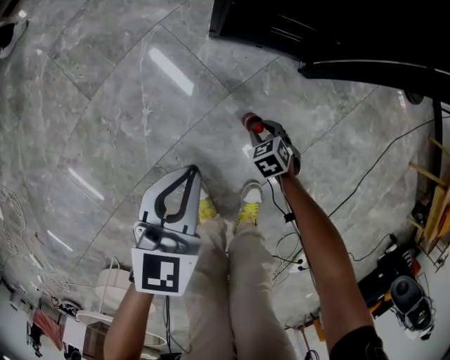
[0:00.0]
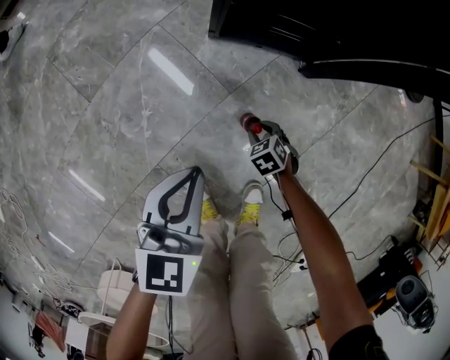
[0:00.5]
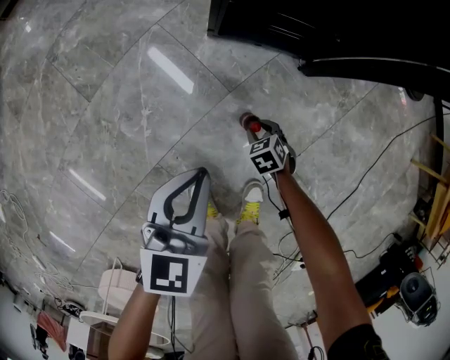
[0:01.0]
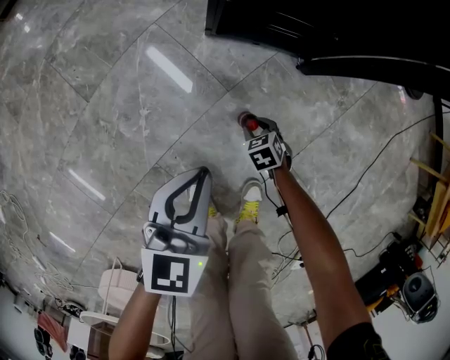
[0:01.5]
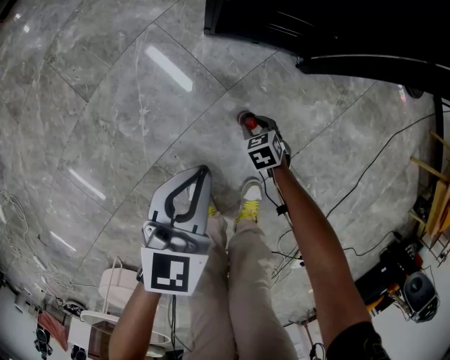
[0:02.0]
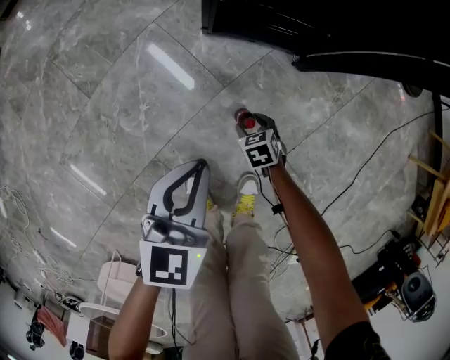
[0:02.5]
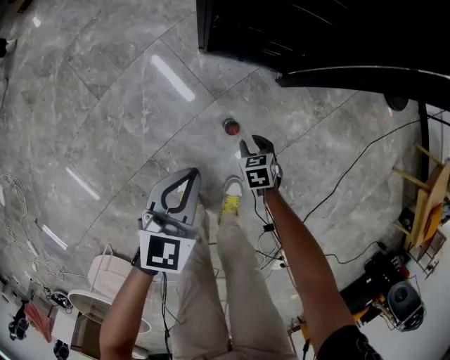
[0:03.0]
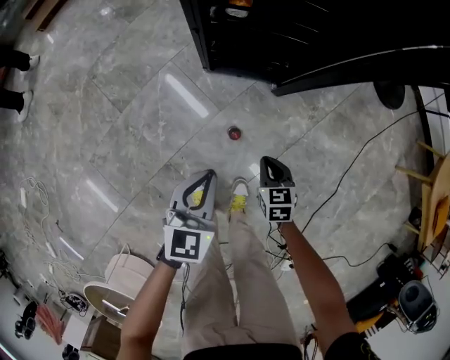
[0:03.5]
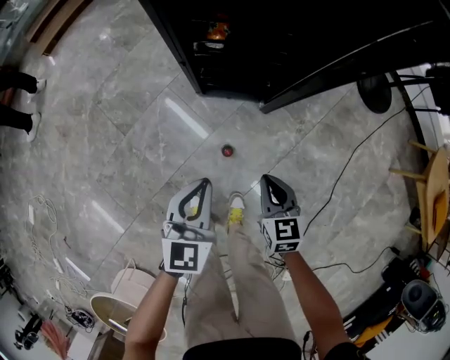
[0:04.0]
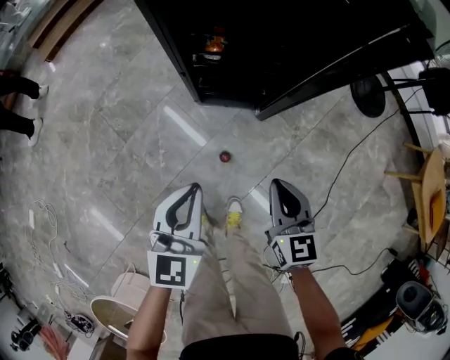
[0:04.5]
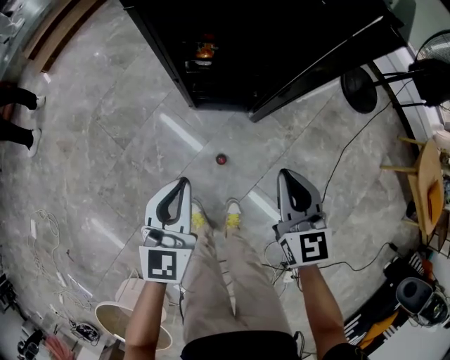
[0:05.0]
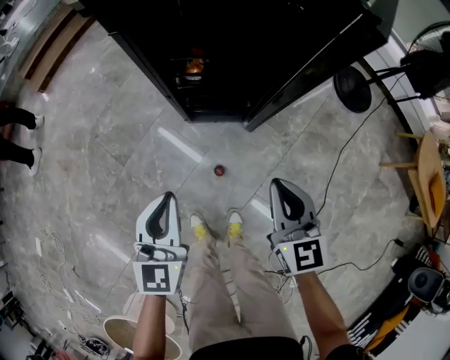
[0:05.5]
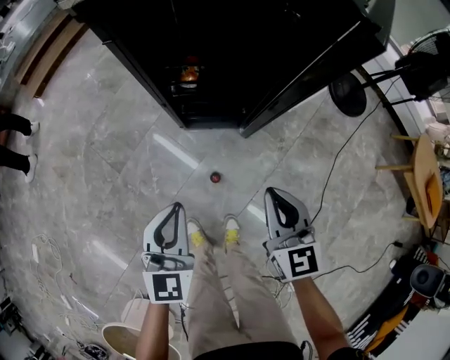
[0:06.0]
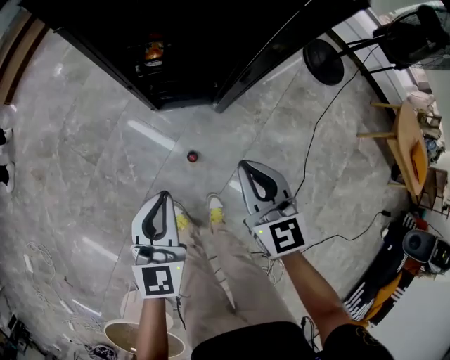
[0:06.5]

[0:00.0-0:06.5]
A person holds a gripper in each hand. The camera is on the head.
0:00.0 to 0:02.0: The grippers move only a little.
0:02.0 to 0:04.5: The right gripper heads upward, covering approximately 60 cm, and tips its fingers upward by approximately 40 degrees. Meanwhile the left gripper travels upward by about 35 cm.
0:04.5 to 0:06.5: The right gripper travels upward by roughly 5 cm.

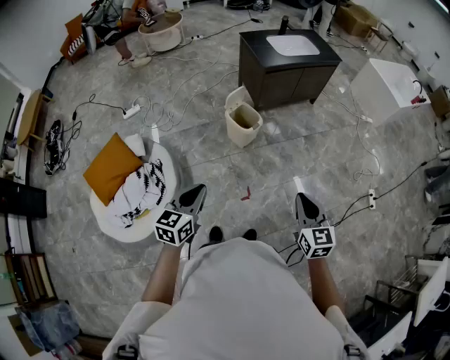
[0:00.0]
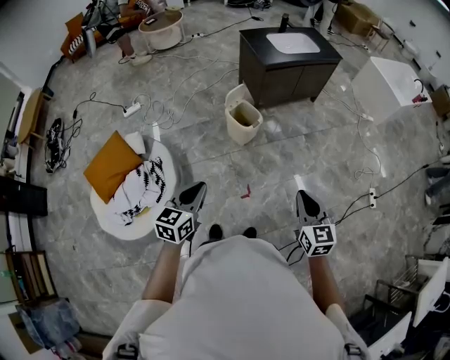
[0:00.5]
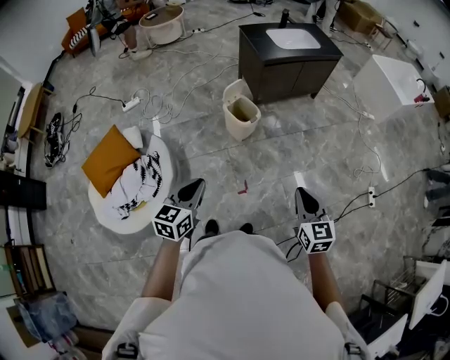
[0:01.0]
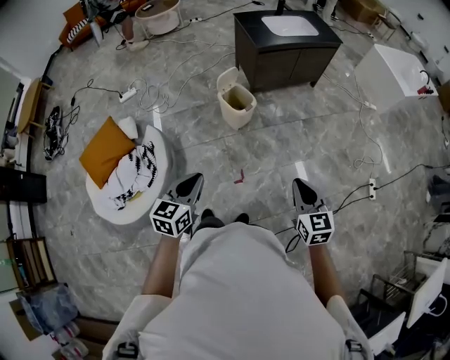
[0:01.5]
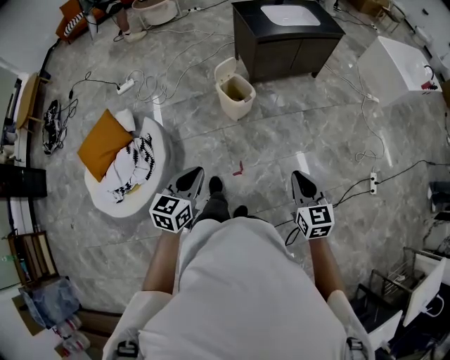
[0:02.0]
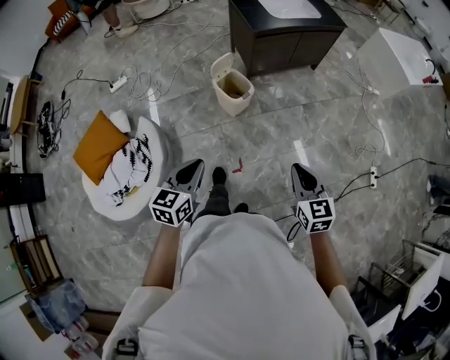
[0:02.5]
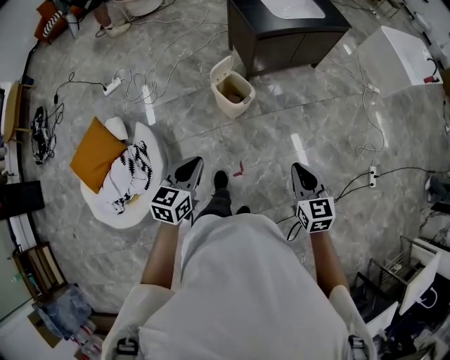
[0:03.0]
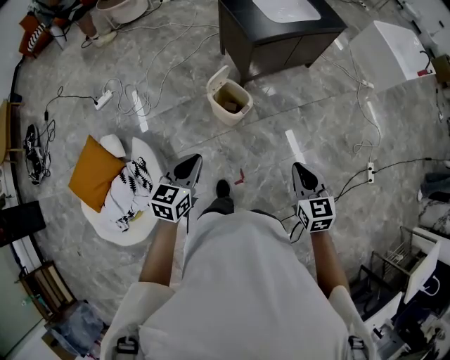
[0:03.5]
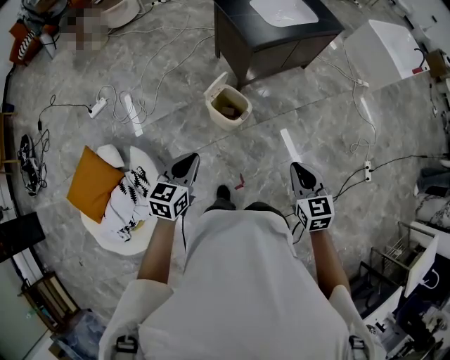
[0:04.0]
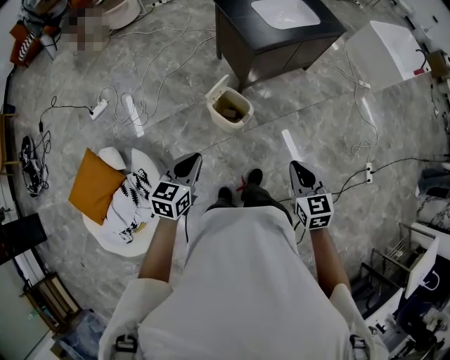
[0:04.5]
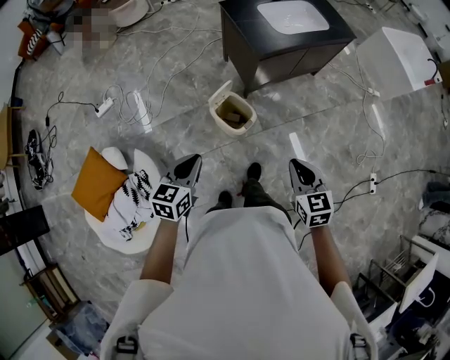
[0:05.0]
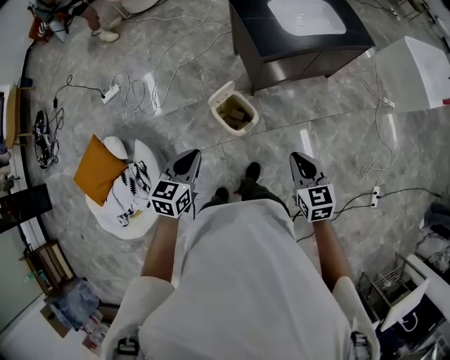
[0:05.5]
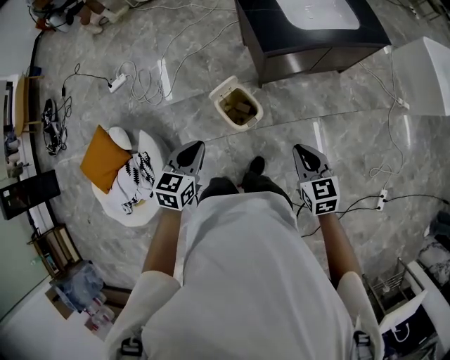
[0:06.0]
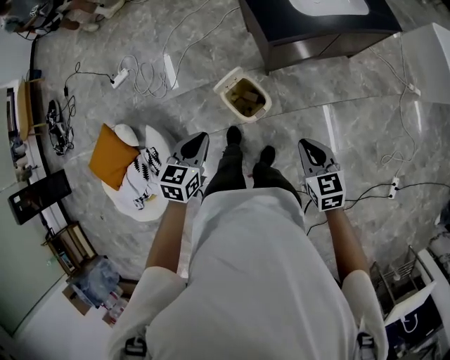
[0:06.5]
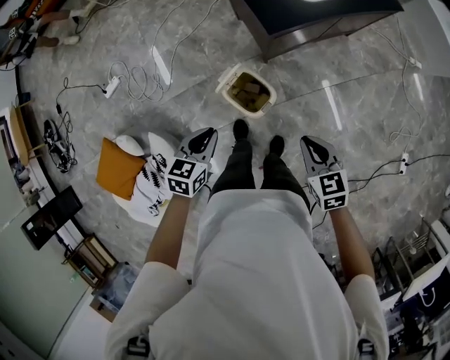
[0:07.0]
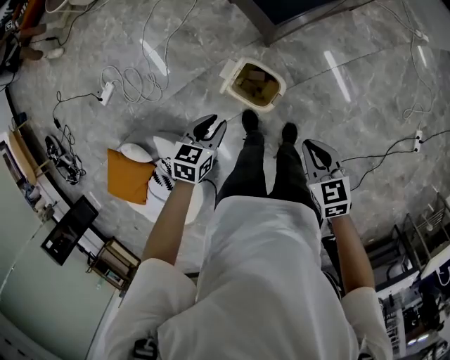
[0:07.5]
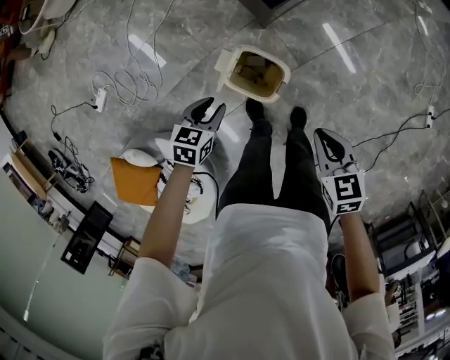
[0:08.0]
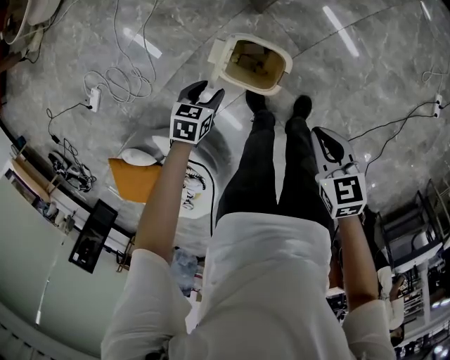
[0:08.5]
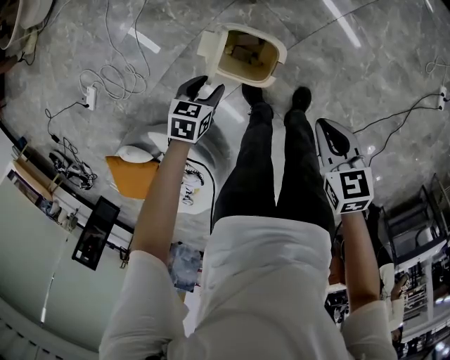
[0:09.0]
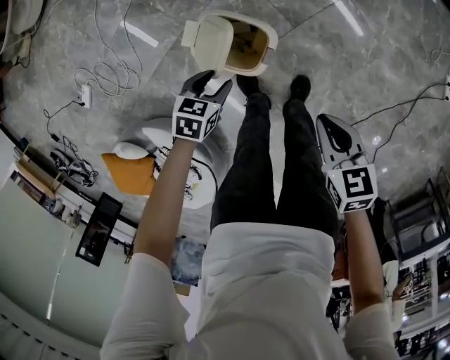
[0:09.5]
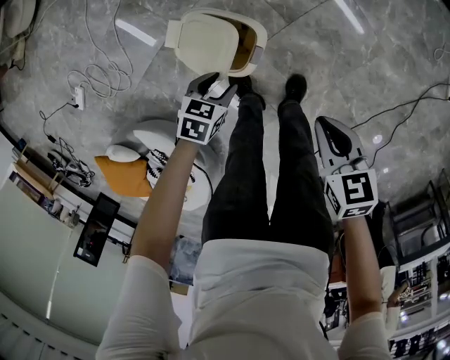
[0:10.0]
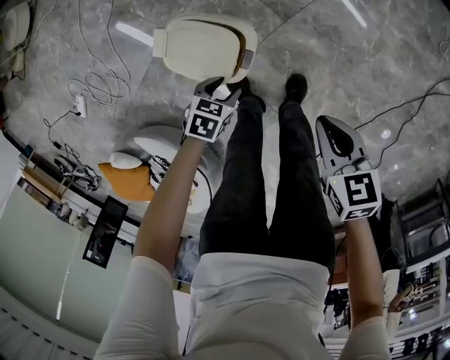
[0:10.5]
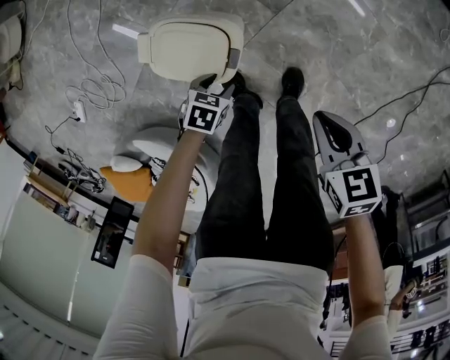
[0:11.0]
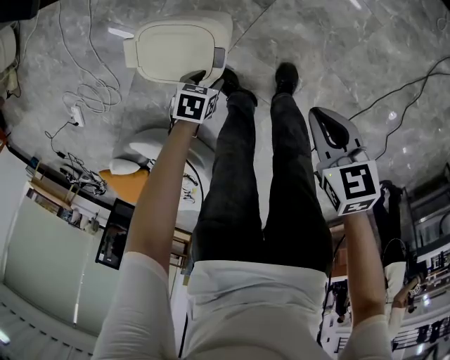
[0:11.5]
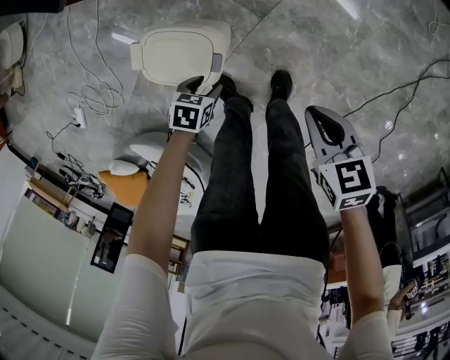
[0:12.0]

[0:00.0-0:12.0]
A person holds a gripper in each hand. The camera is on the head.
0:00.0 to 0:02.0: Both grippers travel together to the right, some 10 cm.
0:02.0 to 0:04.0: The grippers both shift forward and to the left by about 30 cm.
0:04.0 to 0:06.0: The left gripper travels forward and to the right by approximately 20 cm, while the right gripper moves forward, approximately 20 cm.
0:06.0 to 0:08.0: The left gripper moves downward, some 25 cm, turns by about 40 degrees, and opens its fingers. Meanwhile the right gripper moves downward, some 15 cm, and turns by about 30 degrees.
0:08.0 to 0:10.0: The right gripper heads downward, to the right and backward, covering some 15 cm. The left gripper shifts roughly 25 cm downward and to the right.
0:10.0 to 0:12.0: The left gripper goes roughly 10 cm downward. The right gripper changes place by roughly 10 cm.

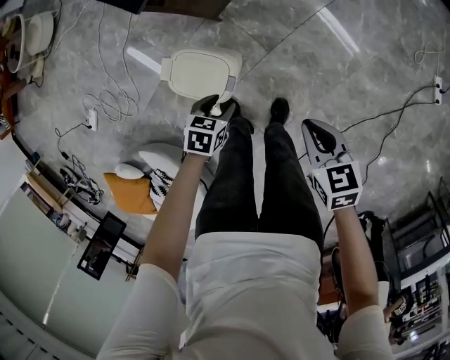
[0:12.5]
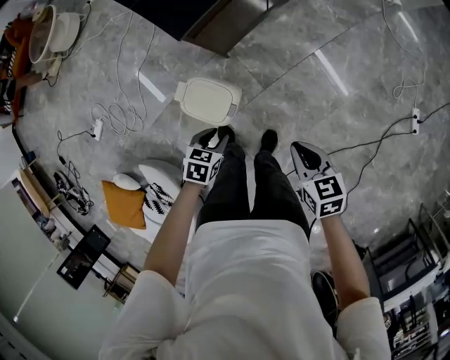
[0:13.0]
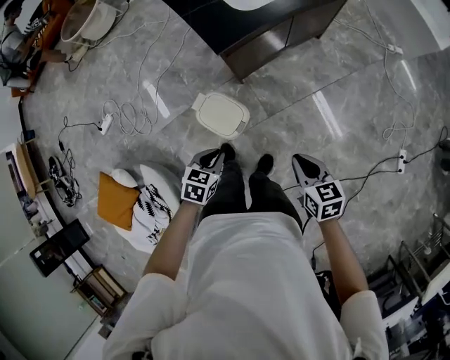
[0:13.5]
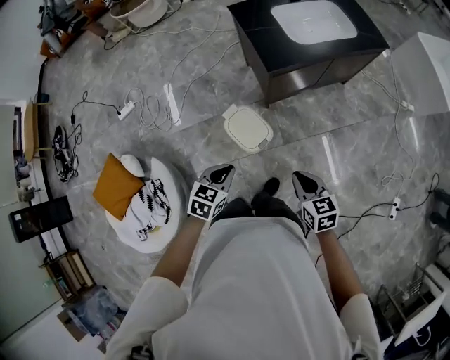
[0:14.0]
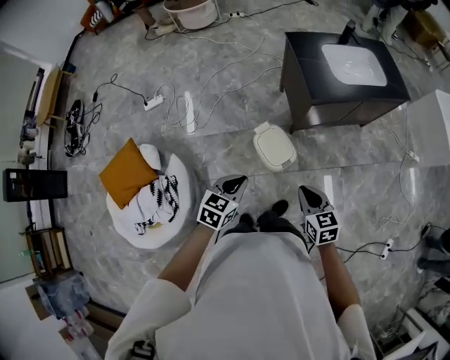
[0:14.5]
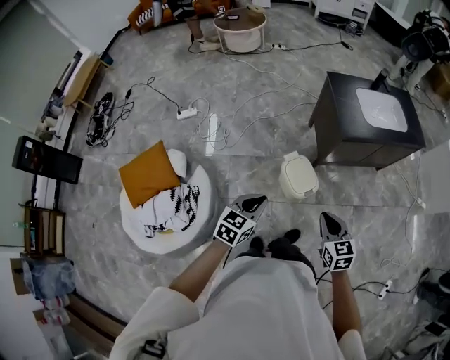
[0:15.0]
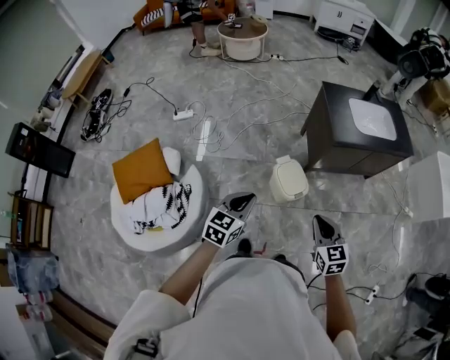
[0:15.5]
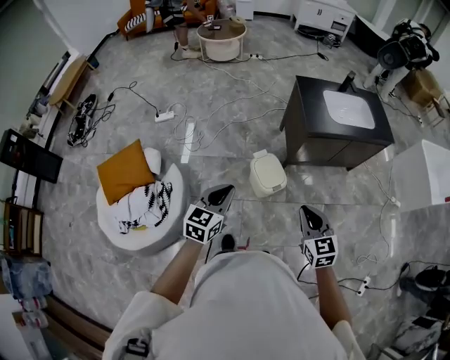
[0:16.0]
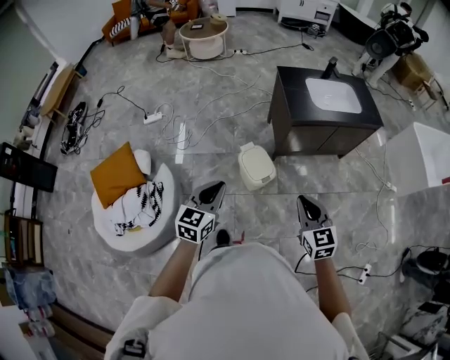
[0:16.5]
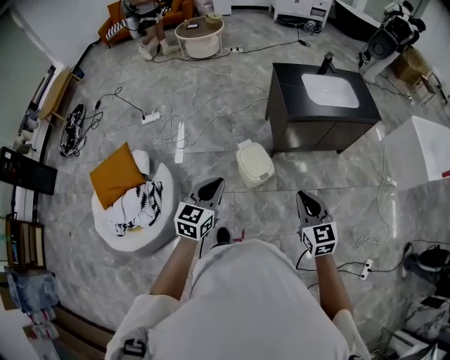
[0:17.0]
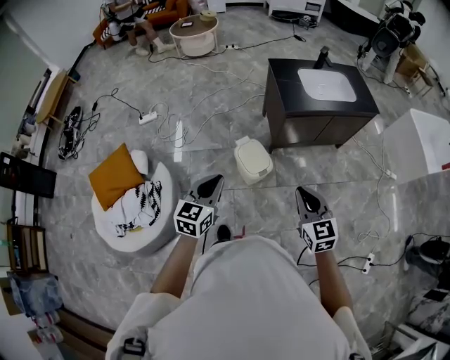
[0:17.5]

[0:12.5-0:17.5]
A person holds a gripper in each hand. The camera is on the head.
0:12.5 to 0:15.0: The right gripper travels upward by about 25 cm, and turns by some 40 degrees. The left gripper moves upward, about 40 cm, angles its fingers upward, by some 40 degrees, and closes its fingers.
0:15.0 to 0:17.5: The left gripper is displaced upward, to the right and backward by roughly 10 cm. Meanwhile the right gripper moves to the right, upward and backward, some 15 cm.

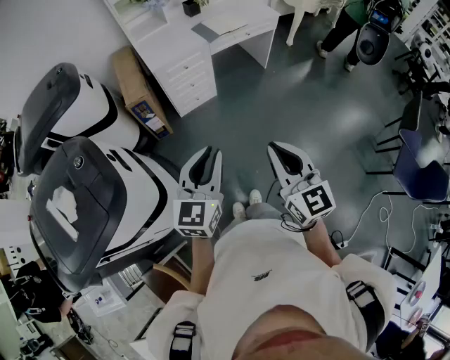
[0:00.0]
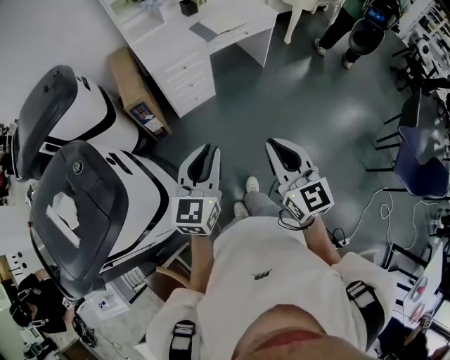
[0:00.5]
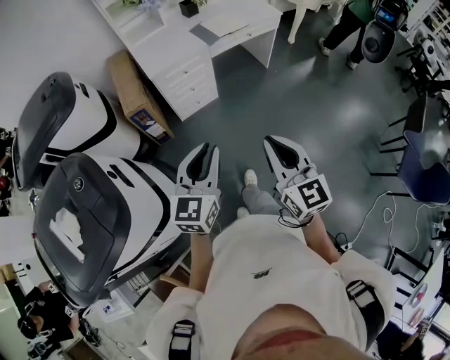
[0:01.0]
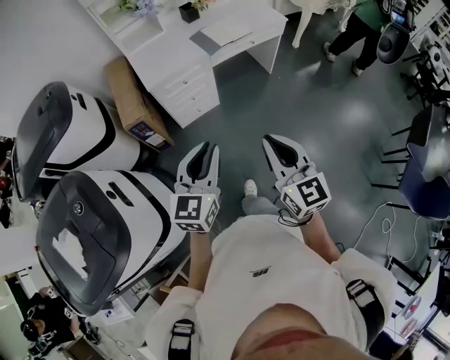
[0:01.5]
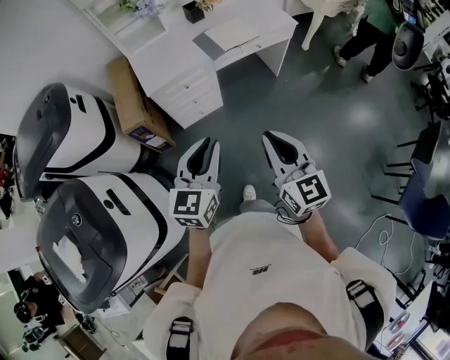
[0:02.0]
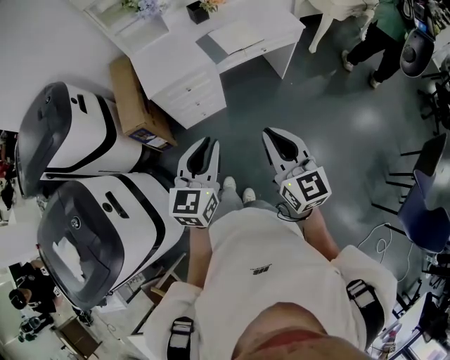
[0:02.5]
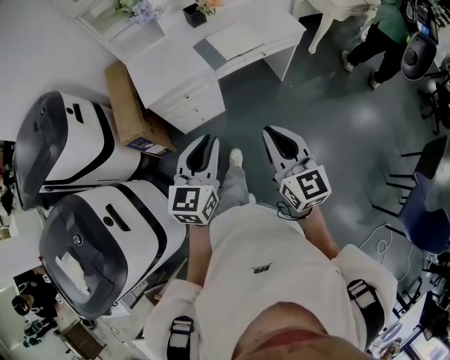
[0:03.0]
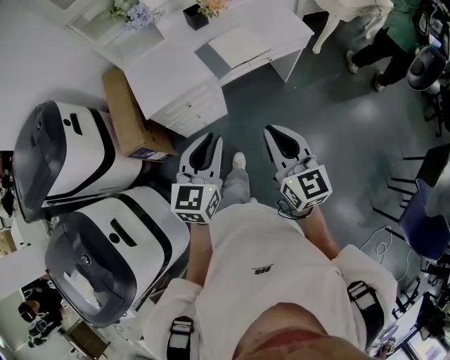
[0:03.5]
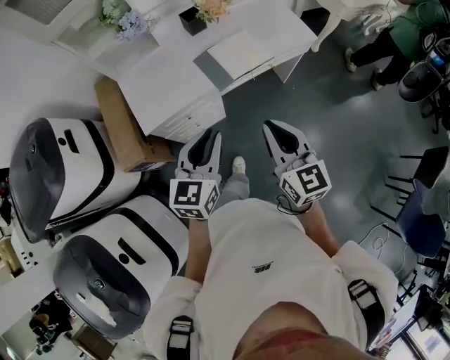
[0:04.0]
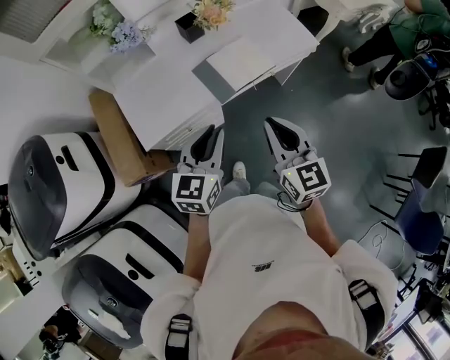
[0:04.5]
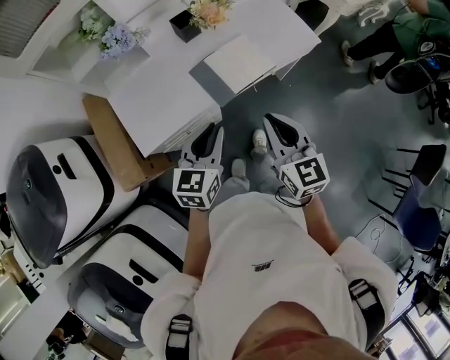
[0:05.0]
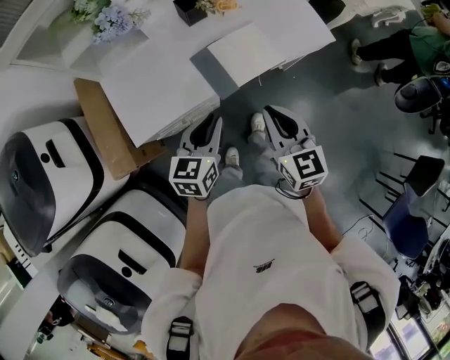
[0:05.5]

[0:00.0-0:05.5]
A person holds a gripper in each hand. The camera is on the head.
0:00.0 to 0:02.0: Both grippers move forward, some 30 cm.
0:02.0 to 0:03.5: The grippers both shift forward by about 20 cm.
0:03.5 to 0:05.5: The left gripper heads forward and downward, covering some 30 cm. The right gripper is displaced forward by roughly 30 cm.
